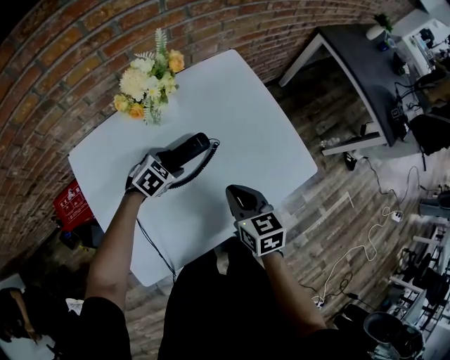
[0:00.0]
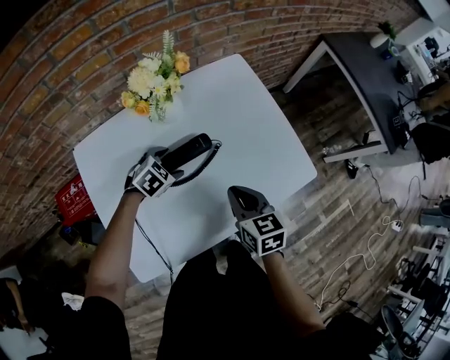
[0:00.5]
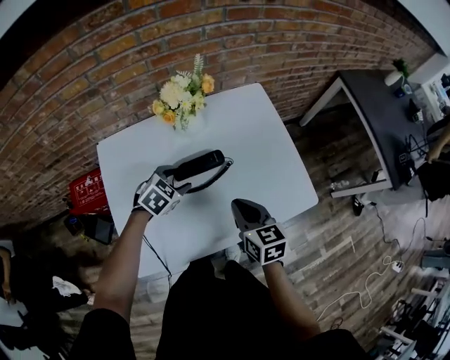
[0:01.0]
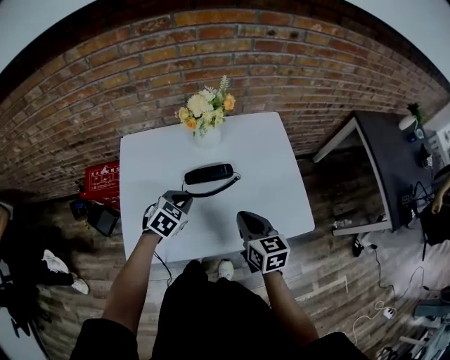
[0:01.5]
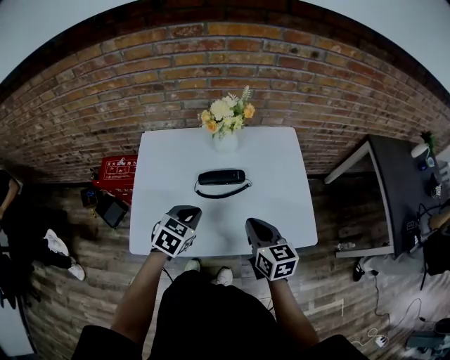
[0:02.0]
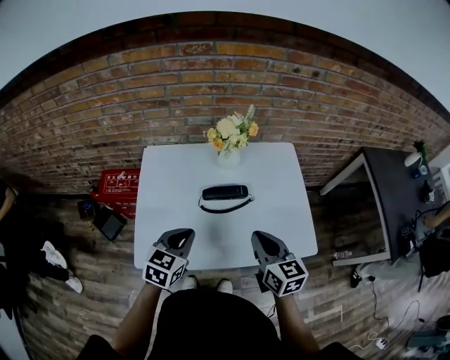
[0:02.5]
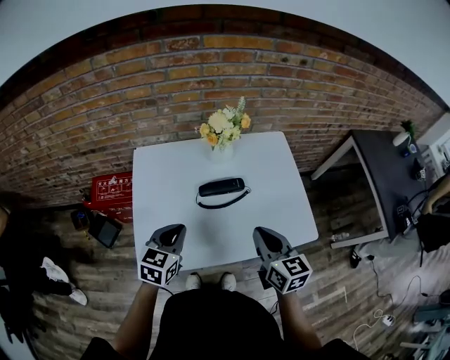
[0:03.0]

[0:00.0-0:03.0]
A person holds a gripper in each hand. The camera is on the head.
0:00.0 to 0:01.5: The right gripper moves upward, about 5 cm. The left gripper goes approximately 15 cm upward, changes its angle by about 30 degrees, and closes up.
0:01.5 to 0:03.0: The left gripper shifts about 15 cm upward, to the left and backward, and rotates roughly 30 degrees. Meanwhile the right gripper heads upward, covering approximately 10 cm.

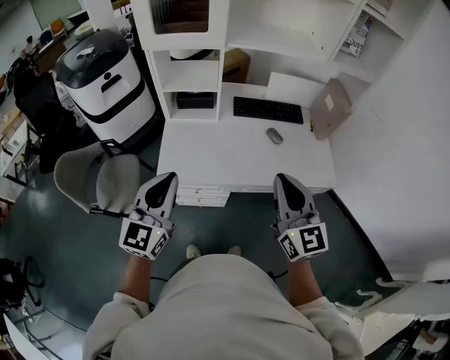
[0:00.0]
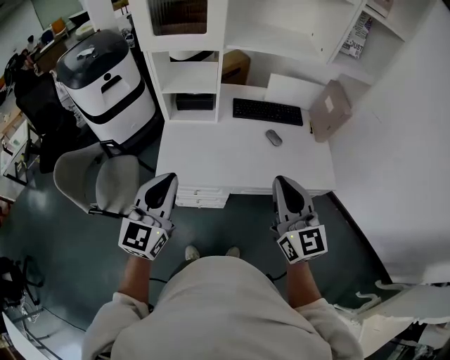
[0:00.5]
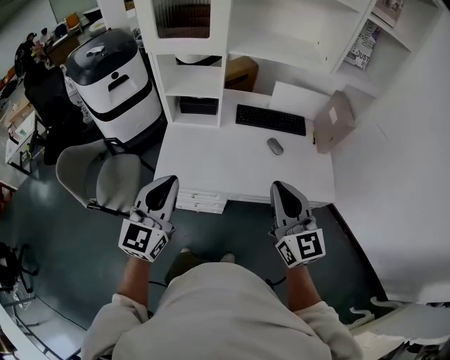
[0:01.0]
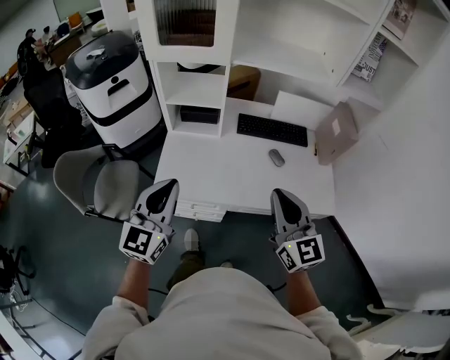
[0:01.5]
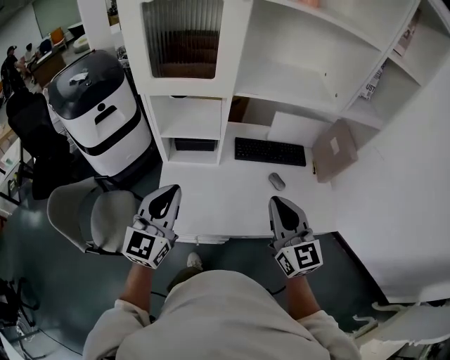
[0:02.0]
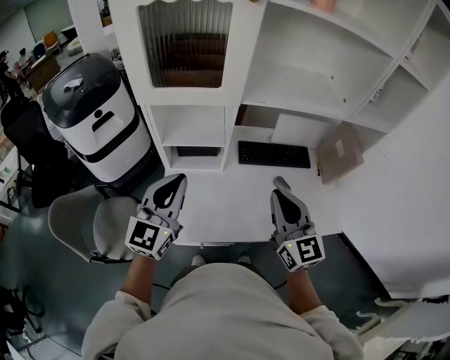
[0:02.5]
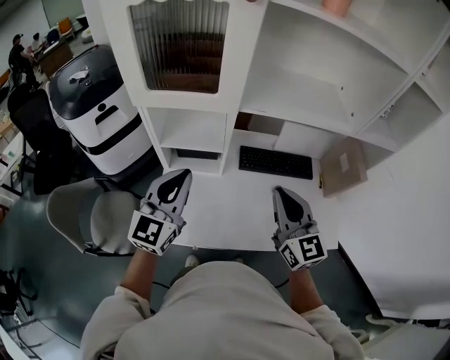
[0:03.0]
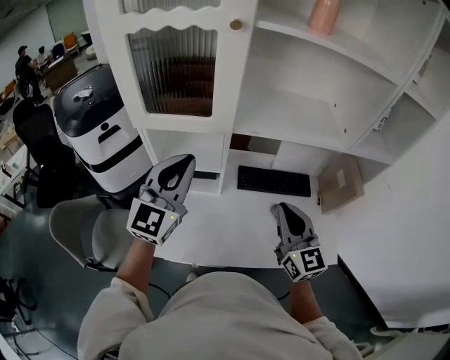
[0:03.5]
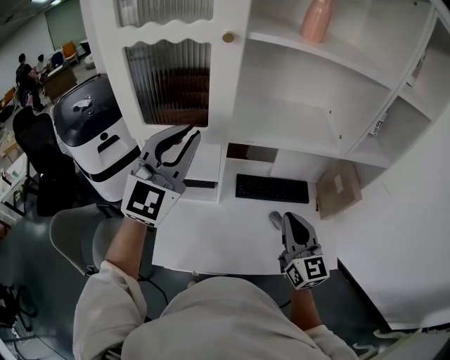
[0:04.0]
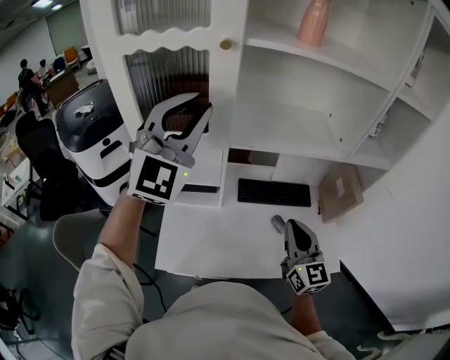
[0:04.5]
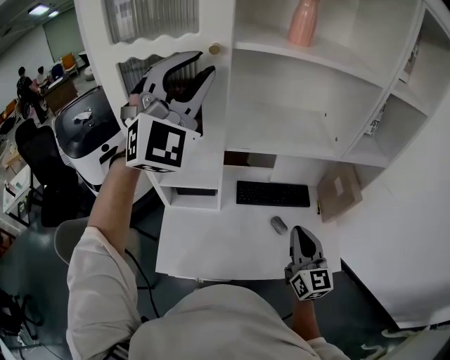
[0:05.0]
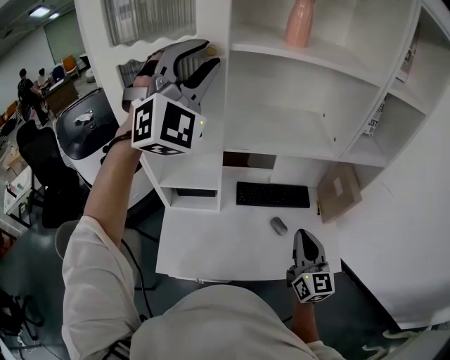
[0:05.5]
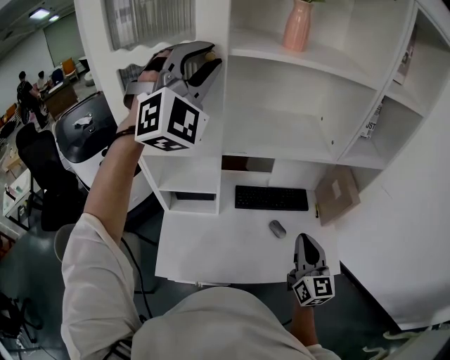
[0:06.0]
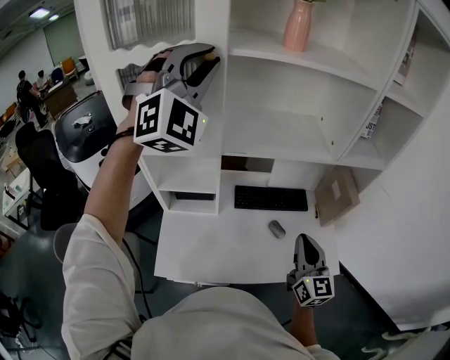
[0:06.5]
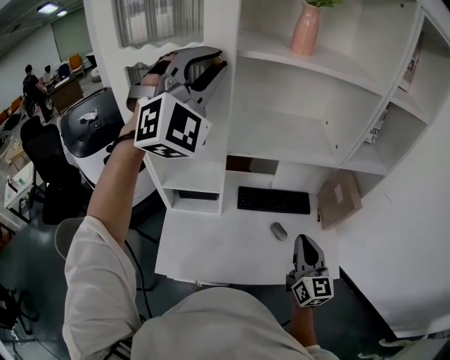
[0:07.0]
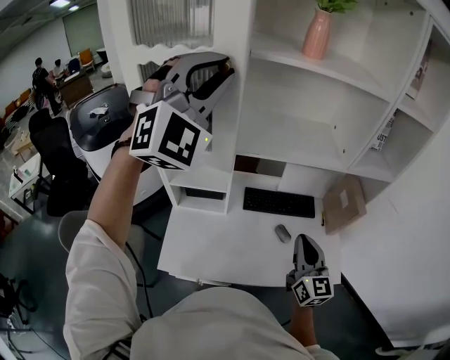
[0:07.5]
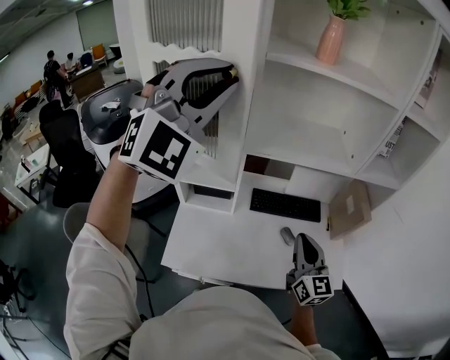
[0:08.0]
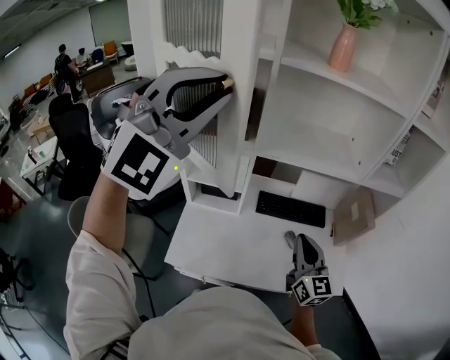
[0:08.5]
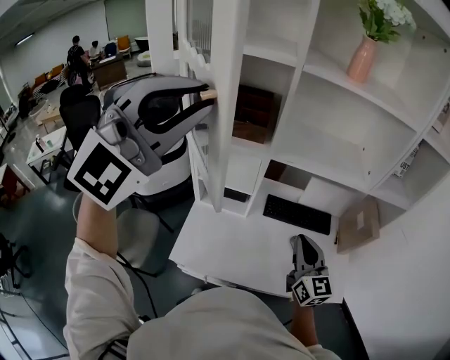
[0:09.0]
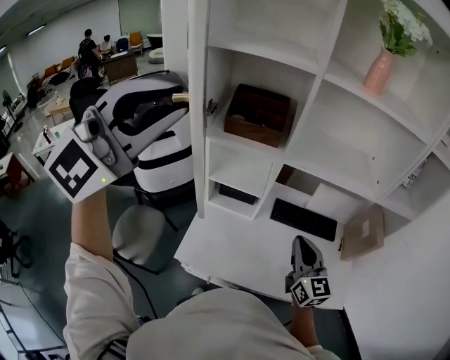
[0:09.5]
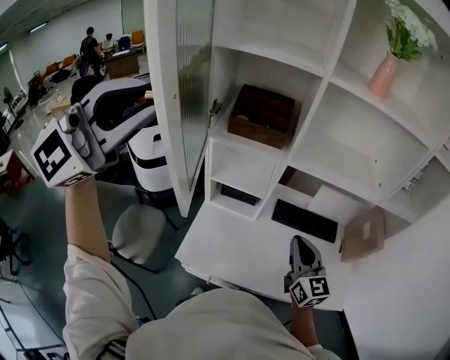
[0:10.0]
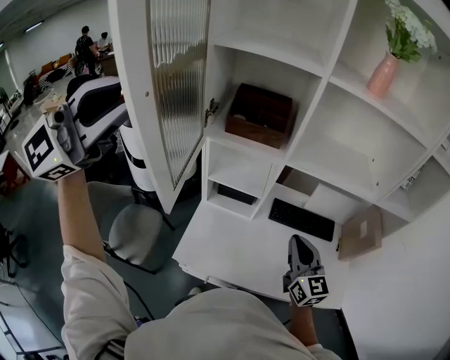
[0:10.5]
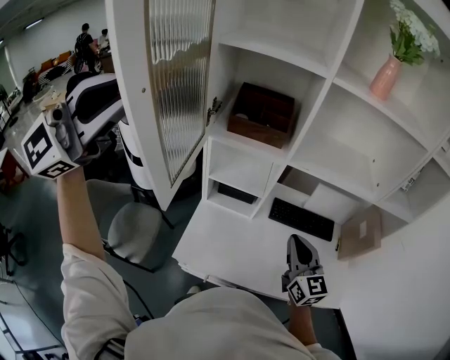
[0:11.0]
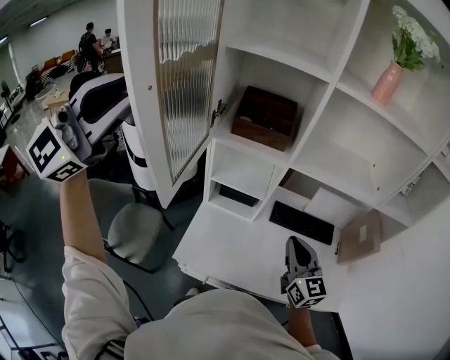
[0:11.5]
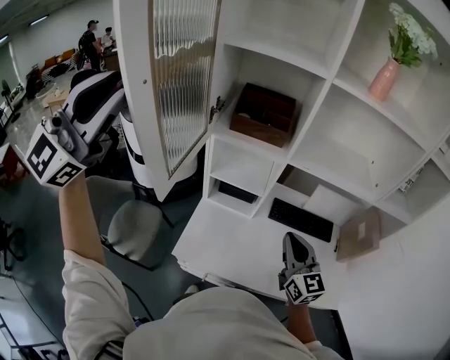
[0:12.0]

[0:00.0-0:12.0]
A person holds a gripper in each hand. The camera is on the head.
0:00.0 to 0:02.0: The grippers both shift forward by about 15 cm.
0:02.0 to 0:04.0: The right gripper shifts approximately 15 cm forward and to the right; the left gripper goes some 25 cm forward and upward, and turns by about 30 degrees.
0:04.0 to 0:06.0: The left gripper heads upward and forward, covering roughly 20 cm, and rotates around the line of its fingers by roughly 50 degrees, clockwise from behind. The right gripper moves to the right, approximately 5 cm.
0:06.0 to 0:08.0: The left gripper shifts approximately 10 cm backward.
0:08.0 to 0:10.0: The right gripper travels to the left by some 10 cm, while the left gripper moves to the left and backward, roughly 25 cm, and rotates roughly 30 degrees.
0:10.0 to 0:12.0: The left gripper heads to the left, covering about 10 cm.

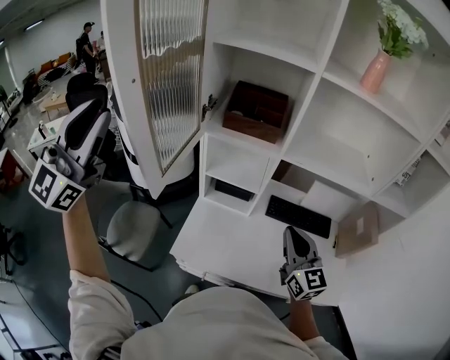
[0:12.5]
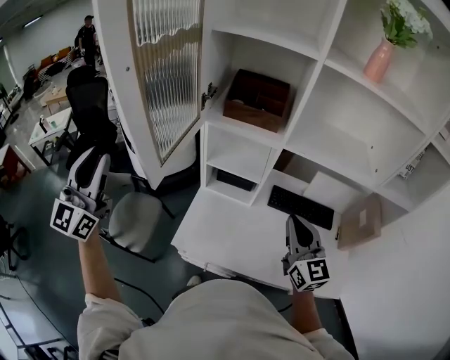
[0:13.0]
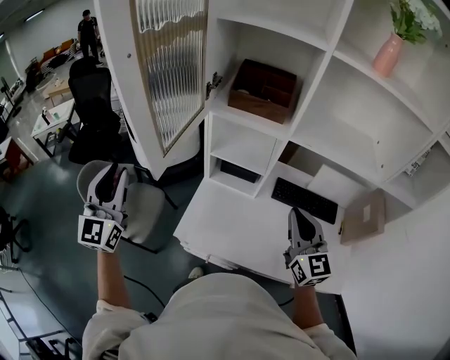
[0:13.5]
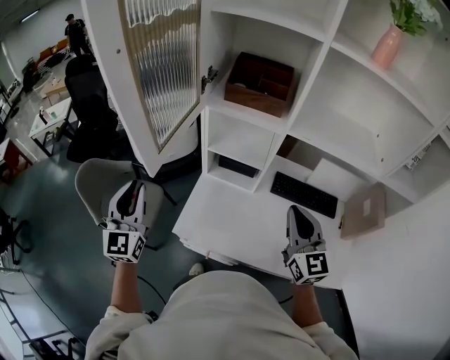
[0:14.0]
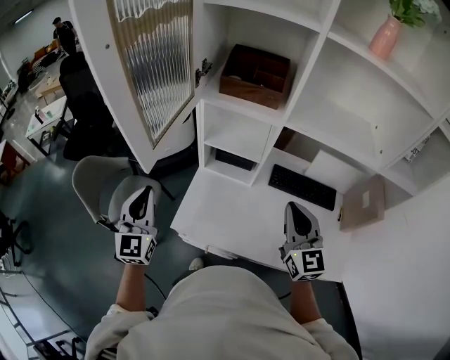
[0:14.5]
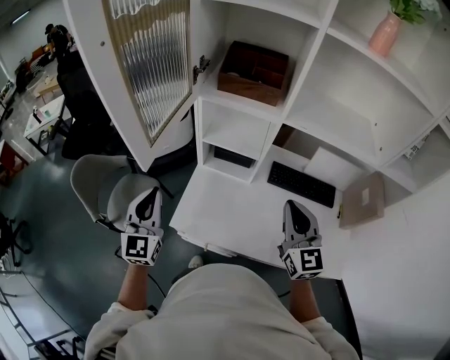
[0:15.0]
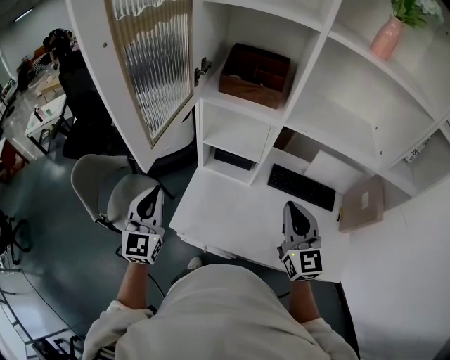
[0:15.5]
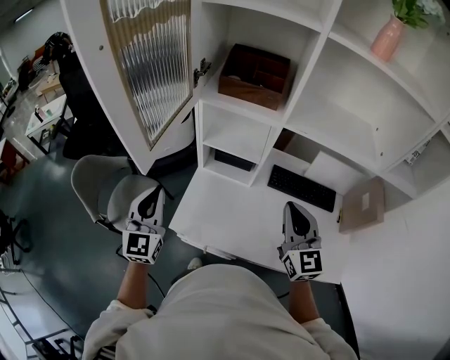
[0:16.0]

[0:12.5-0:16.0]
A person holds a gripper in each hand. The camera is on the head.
0:12.5 to 0:14.5: The left gripper is displaced downward by approximately 30 cm, changes its angle by approximately 40 degrees, and closes up.
0:14.5 to 0:16.0: The grippers move only a little.

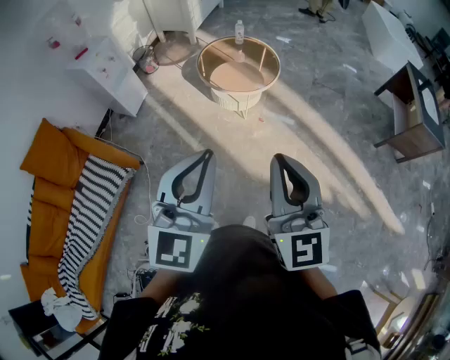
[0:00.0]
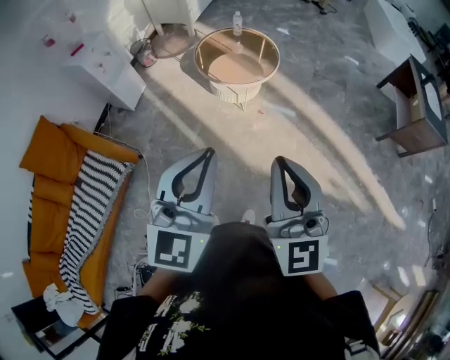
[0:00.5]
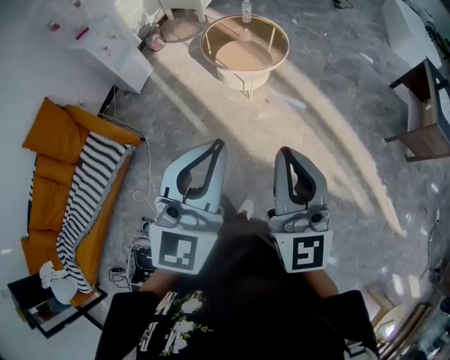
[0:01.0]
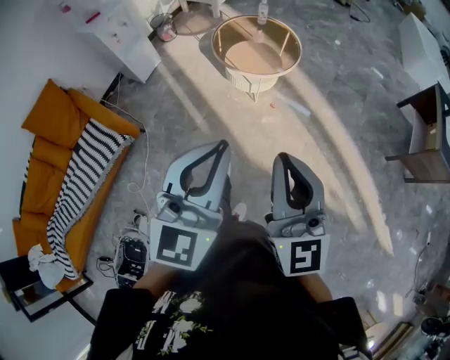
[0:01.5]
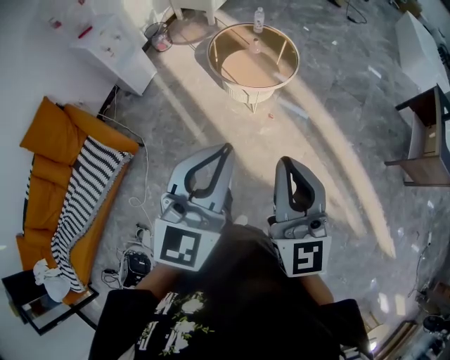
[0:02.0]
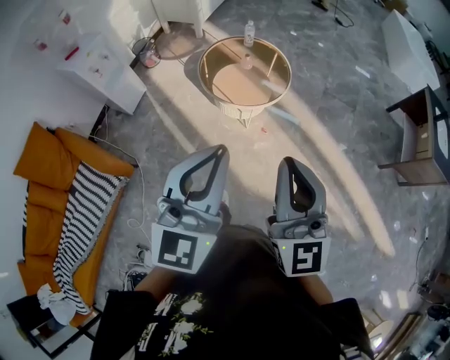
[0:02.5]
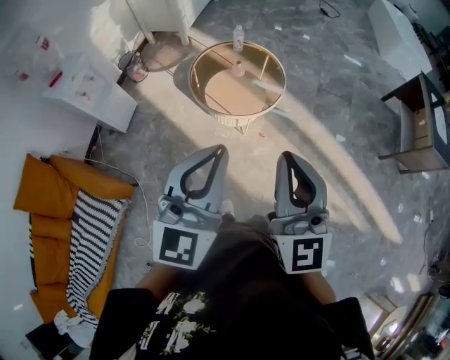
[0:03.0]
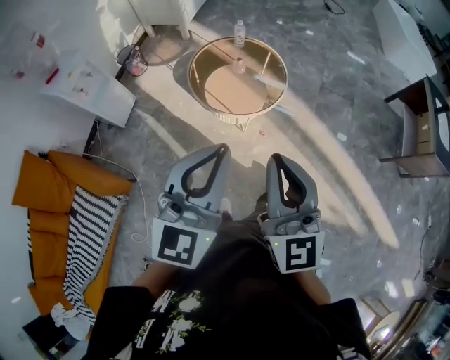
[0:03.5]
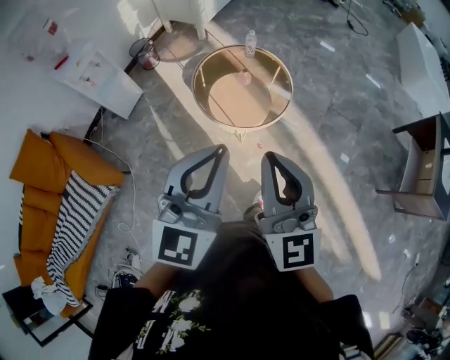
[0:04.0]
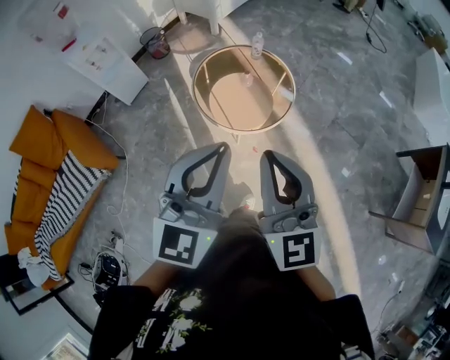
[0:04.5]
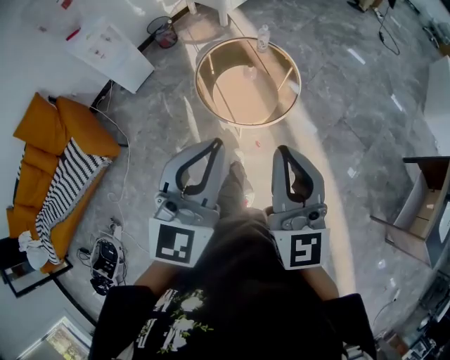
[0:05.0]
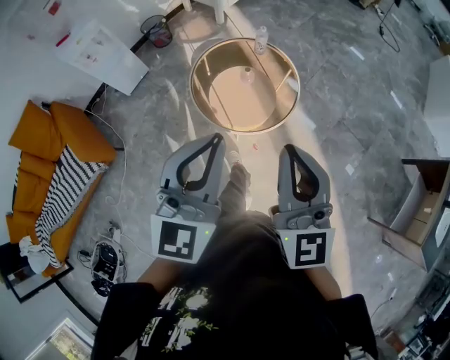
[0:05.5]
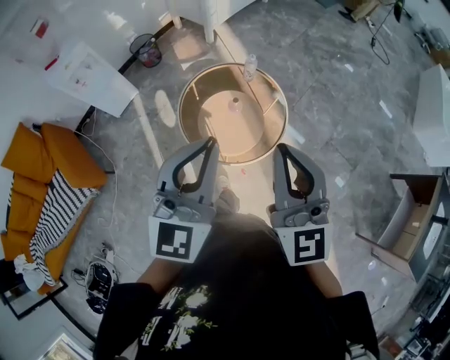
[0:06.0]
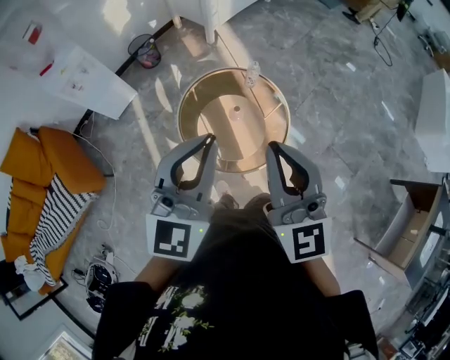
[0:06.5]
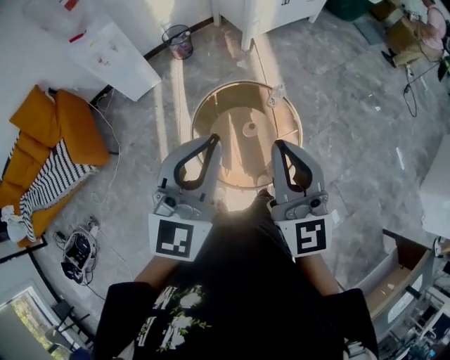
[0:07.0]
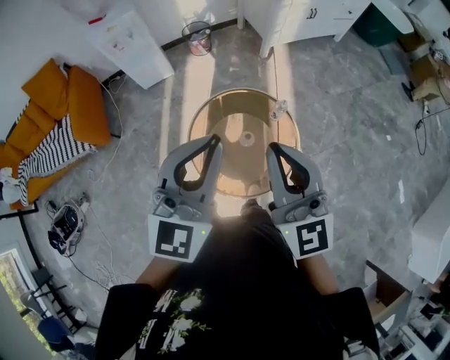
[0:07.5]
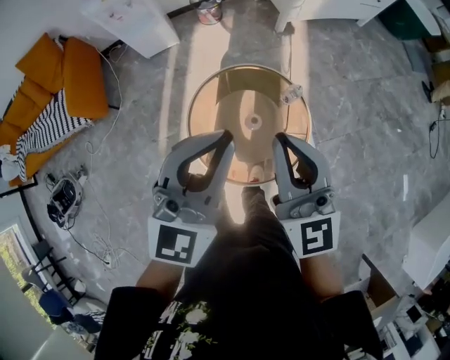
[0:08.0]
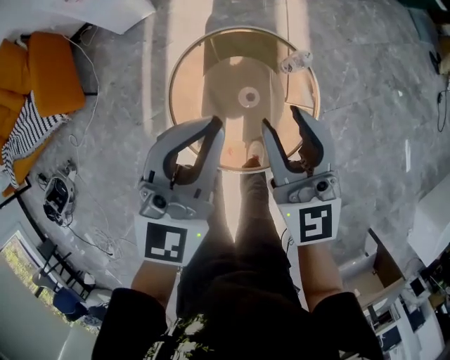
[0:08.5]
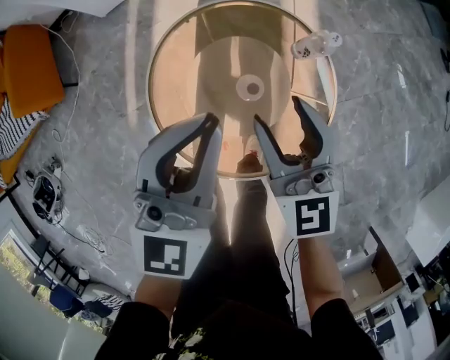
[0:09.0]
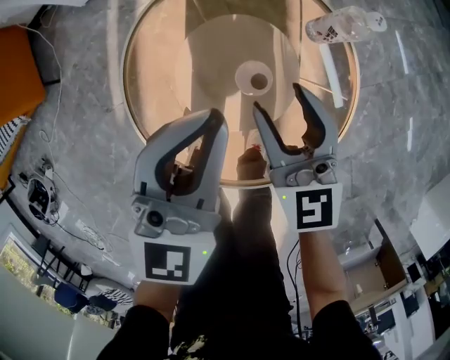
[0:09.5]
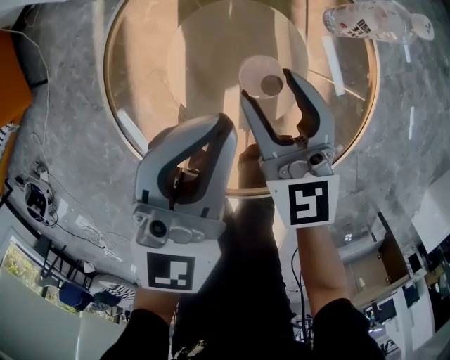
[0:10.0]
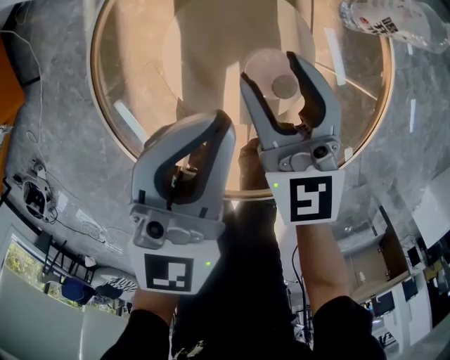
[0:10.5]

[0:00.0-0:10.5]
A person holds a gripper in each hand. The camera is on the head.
0:00.0 to 0:02.0: The grippers both shift forward and to the right by about 15 cm.
0:02.0 to 0:04.0: The grippers both shift forward by some 30 cm.
0:04.0 to 0:06.5: The two grippers go some 35 cm forward.
0:06.5 to 0:08.5: The right gripper shifts by about 40 cm, turns by approximately 30 degrees, and opens its fingers, while the left gripper ends up about 30 cm from where it was, and rotates roughly 20 degrees.
0:08.5 to 0:10.5: Both grippers move downward, some 40 cm.
